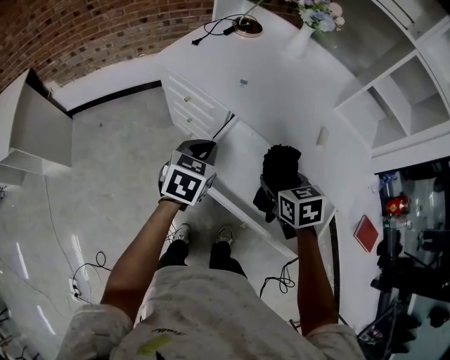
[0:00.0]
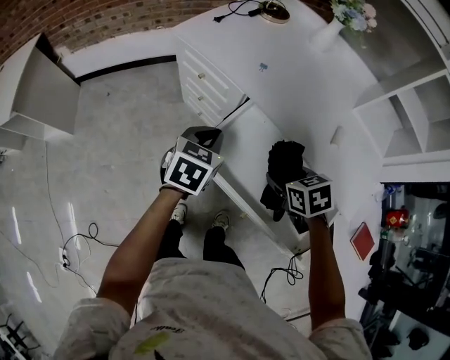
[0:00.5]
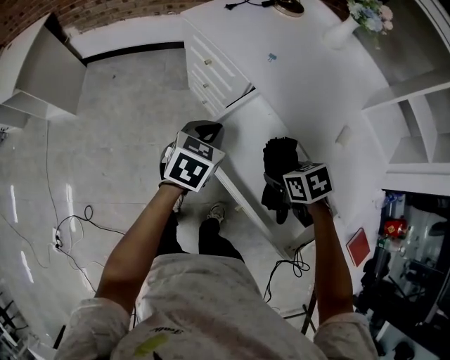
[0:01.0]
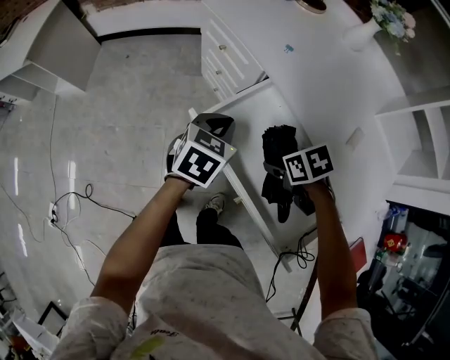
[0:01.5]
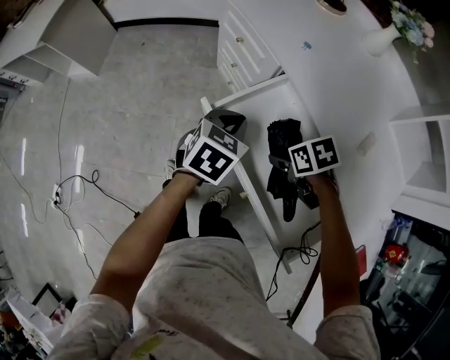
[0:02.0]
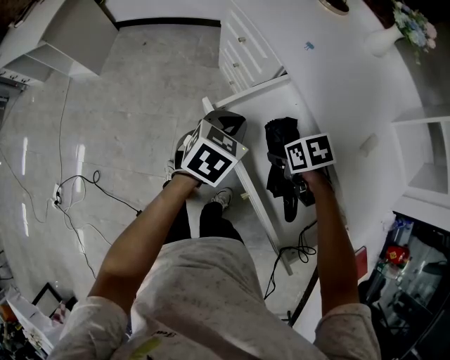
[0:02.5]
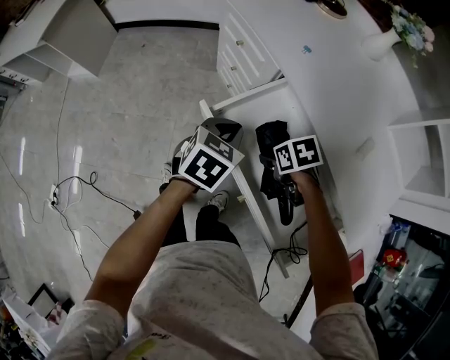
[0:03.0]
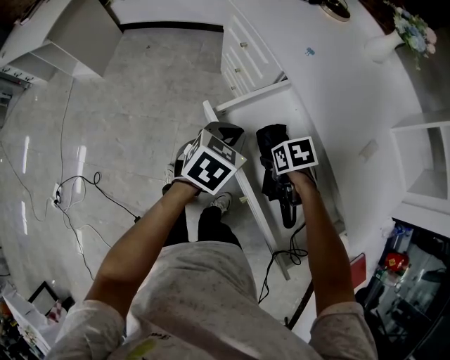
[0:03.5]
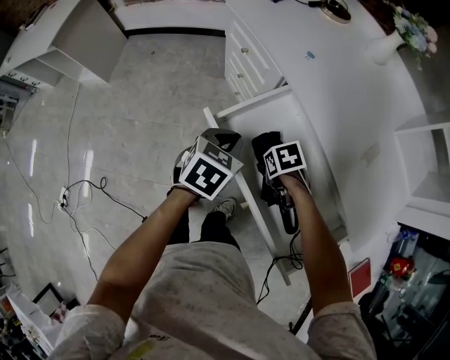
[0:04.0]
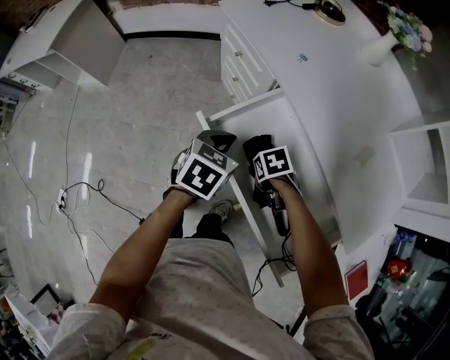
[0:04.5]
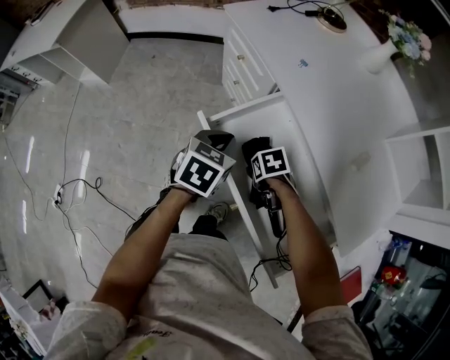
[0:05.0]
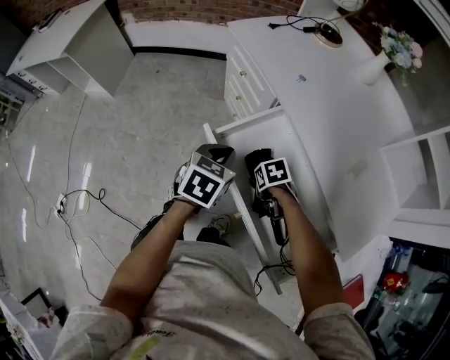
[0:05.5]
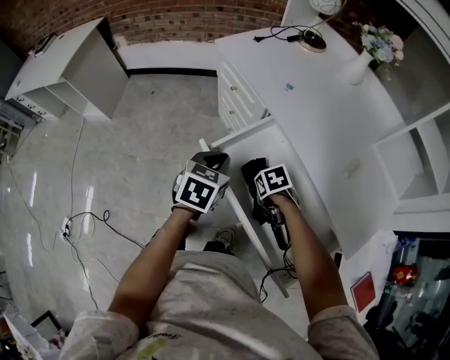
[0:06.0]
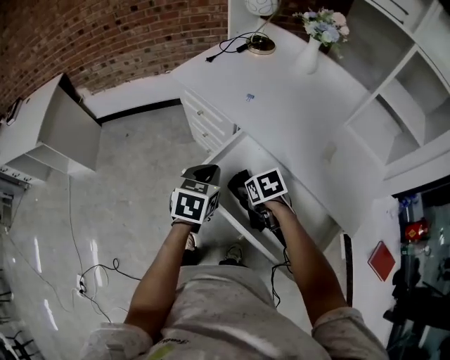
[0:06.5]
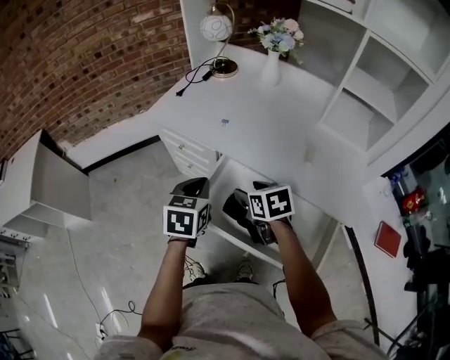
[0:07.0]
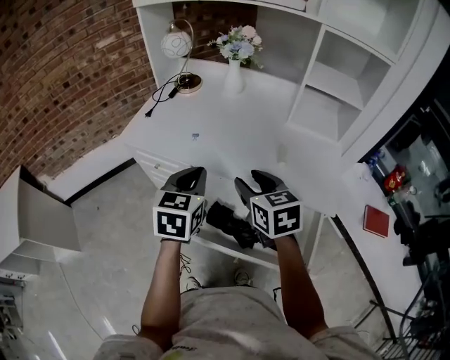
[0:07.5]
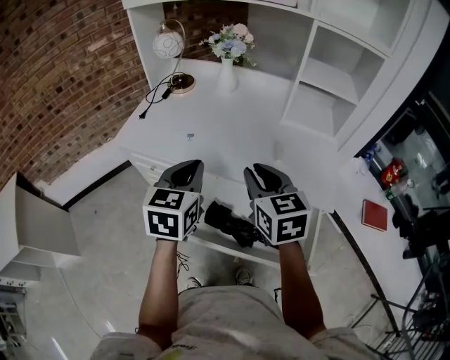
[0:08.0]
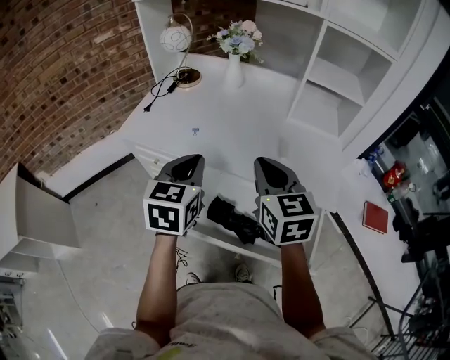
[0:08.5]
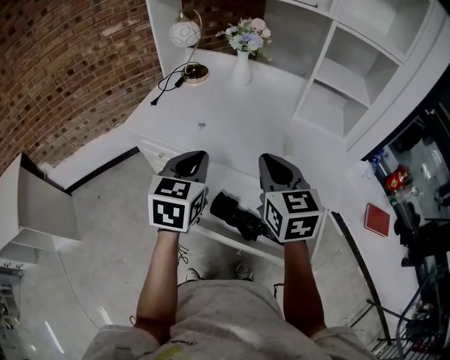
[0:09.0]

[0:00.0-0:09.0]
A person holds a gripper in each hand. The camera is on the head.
0:00.0 to 0:02.0: The left gripper is displaced downward by roughly 5 cm, while the right gripper goes approximately 15 cm downward, and rotates about 40 degrees.
0:02.0 to 0:04.5: The right gripper goes roughly 10 cm downward.
0:04.5 to 0:07.0: The right gripper heads upward, covering roughly 20 cm, and changes its angle by approximately 50 degrees, while the left gripper goes about 10 cm upward.
0:07.0 to 0:09.0: The left gripper travels upward by approximately 10 cm. Meanwhile the right gripper moves upward and to the right, roughly 20 cm, changes its angle by roughly 40 degrees, and closes.

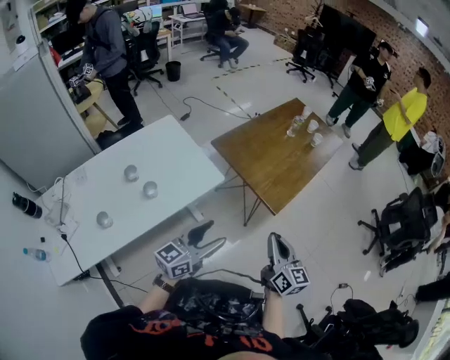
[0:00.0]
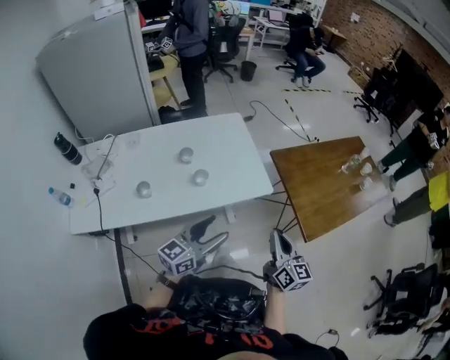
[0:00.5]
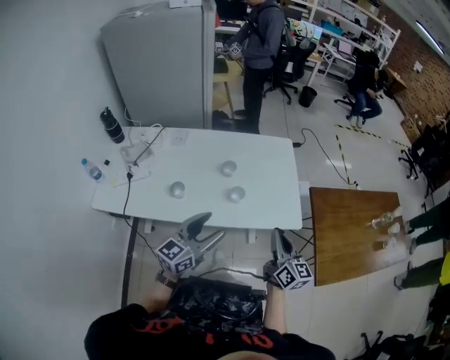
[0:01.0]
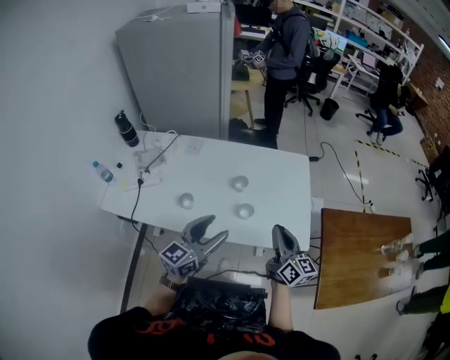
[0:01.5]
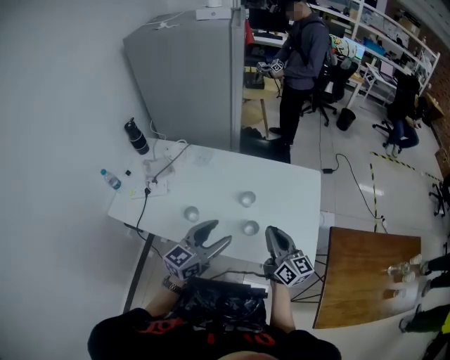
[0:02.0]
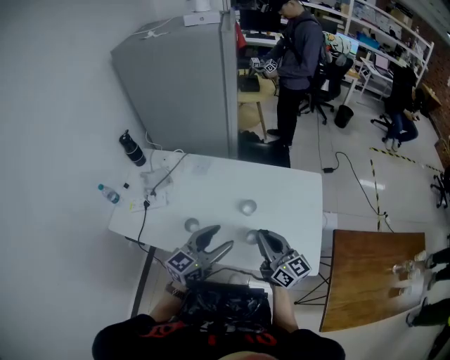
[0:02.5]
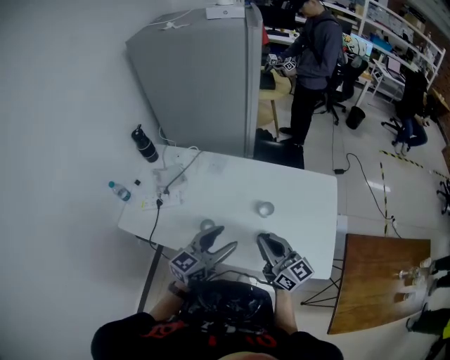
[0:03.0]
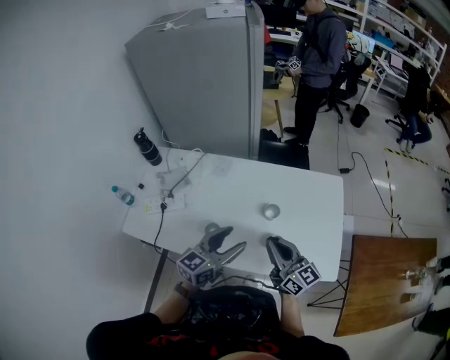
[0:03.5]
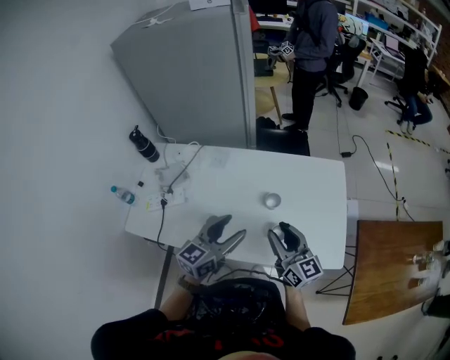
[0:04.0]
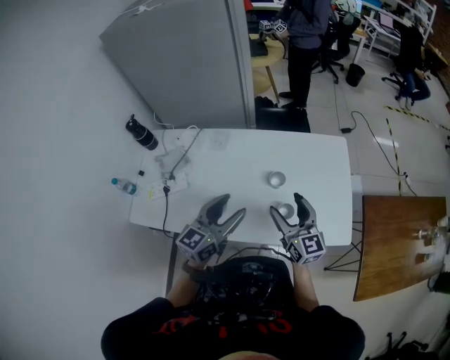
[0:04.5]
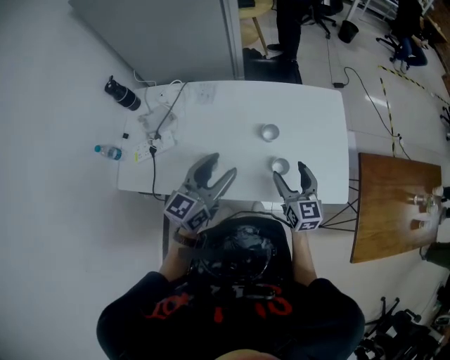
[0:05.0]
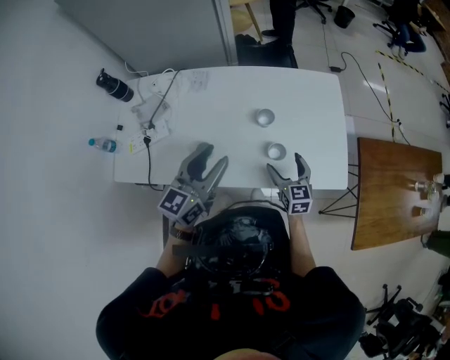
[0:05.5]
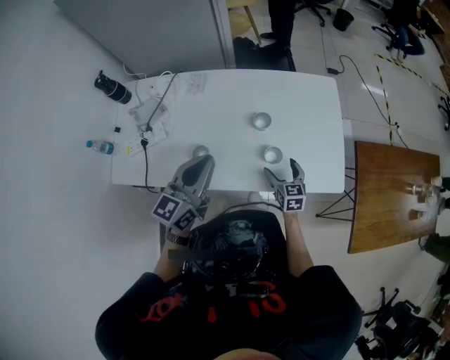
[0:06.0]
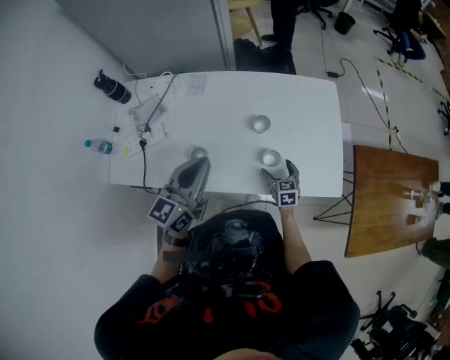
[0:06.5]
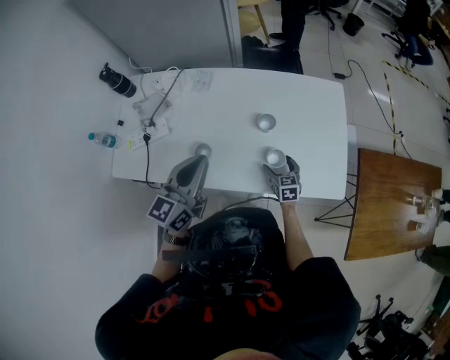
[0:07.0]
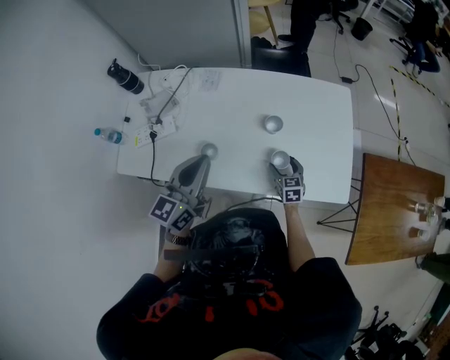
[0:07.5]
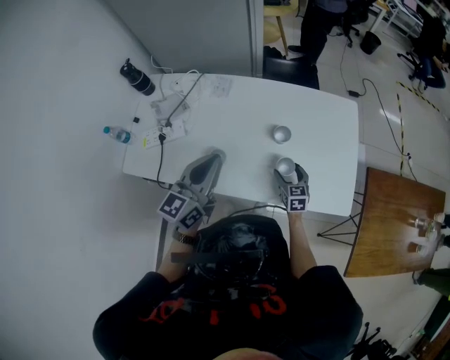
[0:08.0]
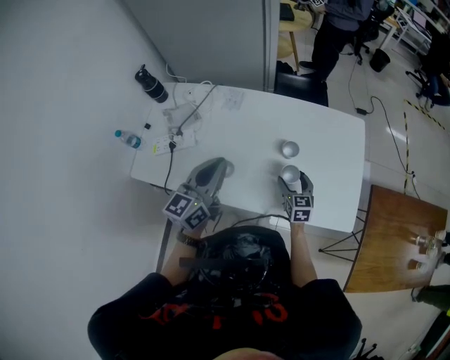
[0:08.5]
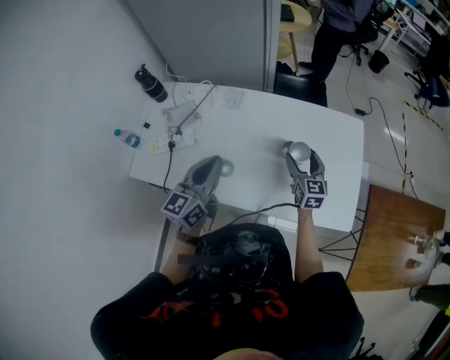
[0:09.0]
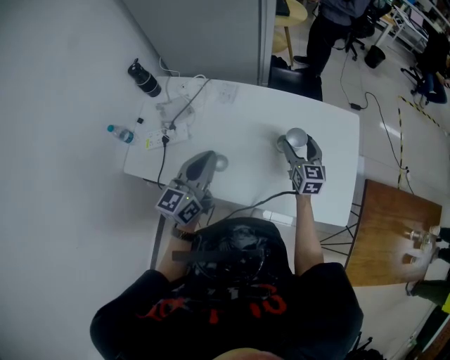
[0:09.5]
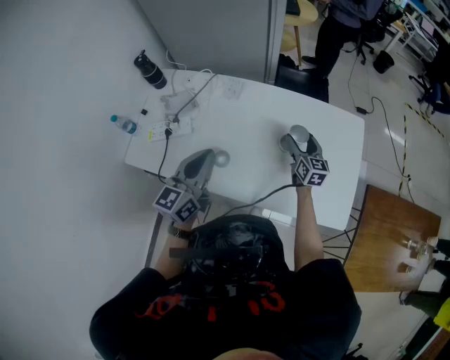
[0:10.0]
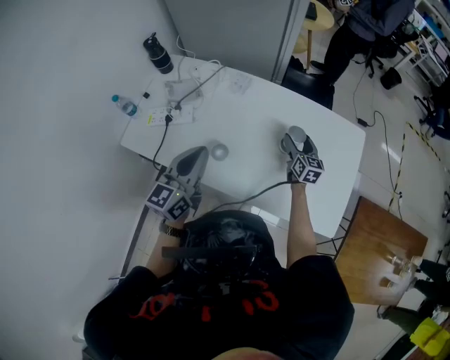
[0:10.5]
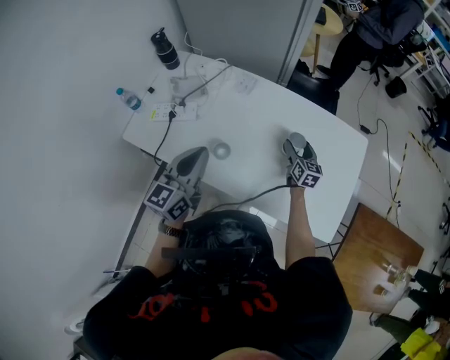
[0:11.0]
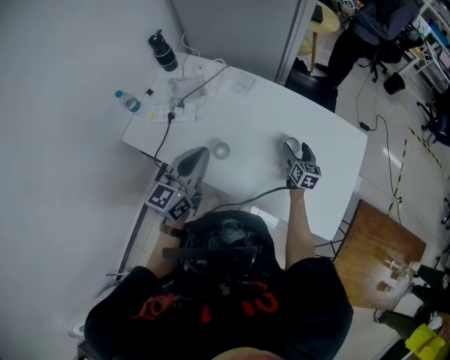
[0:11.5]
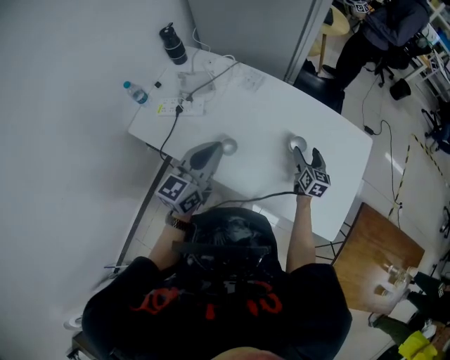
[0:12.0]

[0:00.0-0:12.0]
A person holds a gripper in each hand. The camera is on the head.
0:00.0 to 0:02.0: The right gripper ends up roughly 50 cm from where it was, and changes its angle by some 60 degrees. Meanwhile the left gripper ends up roughly 35 cm from where it was, and turns by about 60 degrees.
0:02.0 to 0:04.0: The right gripper heads to the left, covering roughly 10 cm. Meanwhile the left gripper travels forward and to the left by roughly 10 cm.
0:04.0 to 0:06.0: The right gripper shifts about 25 cm downward, angles its fingers downward, by some 30 degrees, and opens. Meanwhile the left gripper closes its fingers.
0:06.0 to 0:08.0: The right gripper moves some 5 cm.
0:08.0 to 0:10.0: The right gripper goes about 20 cm forward and upward, and turns by about 20 degrees.
0:10.0 to 0:12.0: The right gripper goes some 5 cm downward.

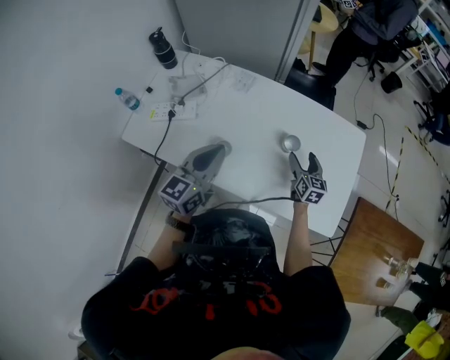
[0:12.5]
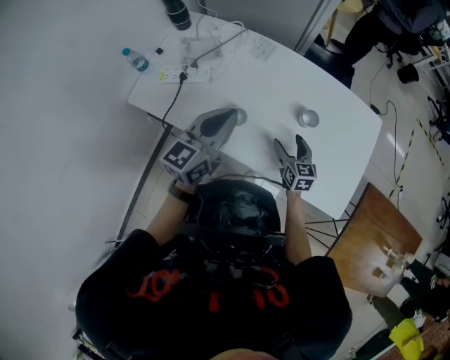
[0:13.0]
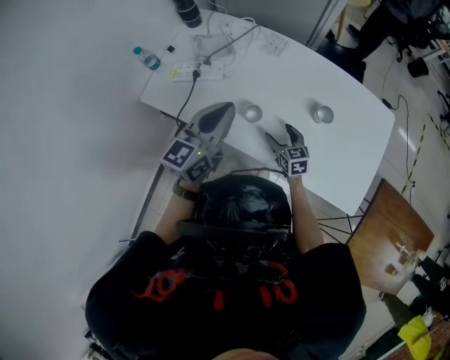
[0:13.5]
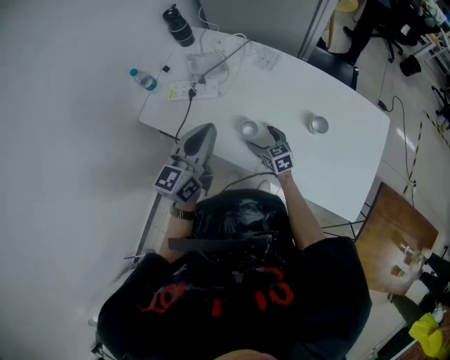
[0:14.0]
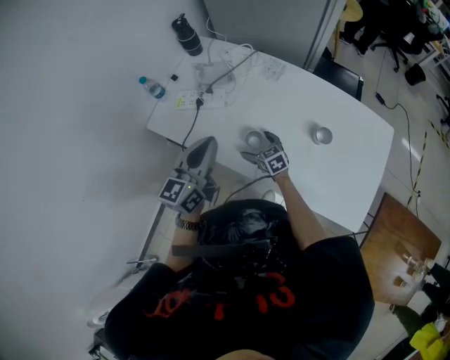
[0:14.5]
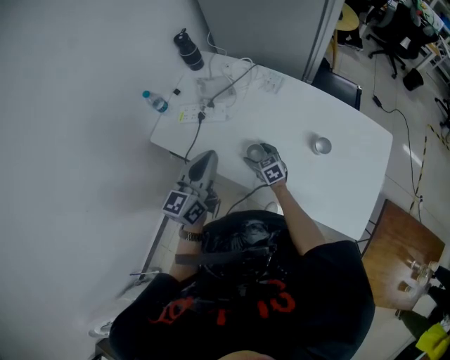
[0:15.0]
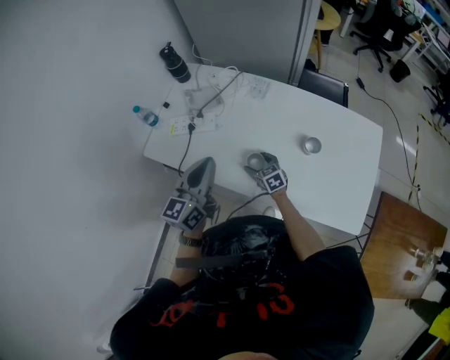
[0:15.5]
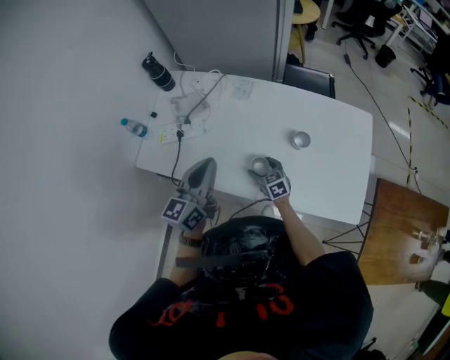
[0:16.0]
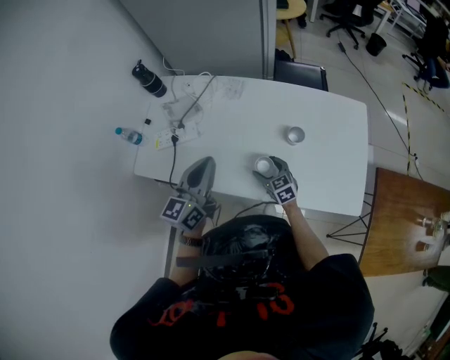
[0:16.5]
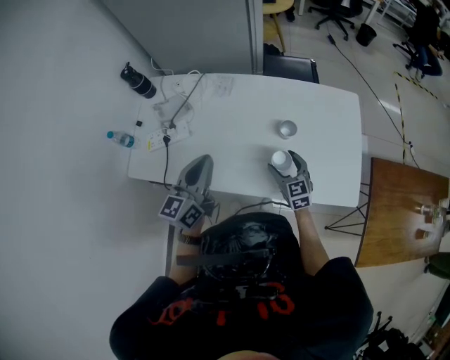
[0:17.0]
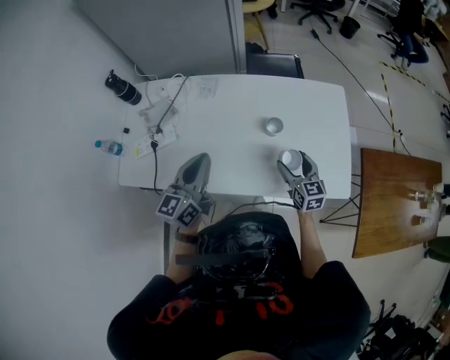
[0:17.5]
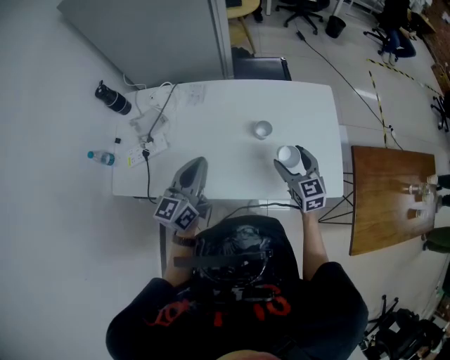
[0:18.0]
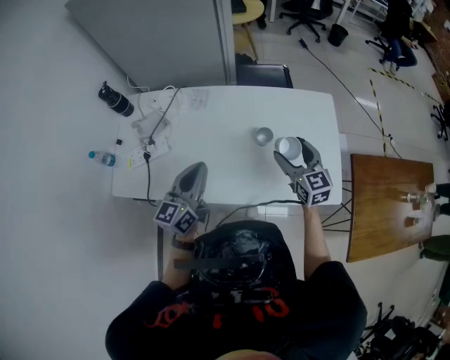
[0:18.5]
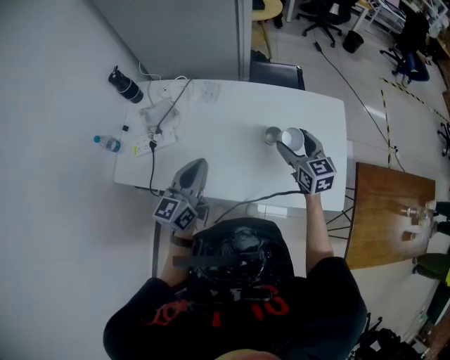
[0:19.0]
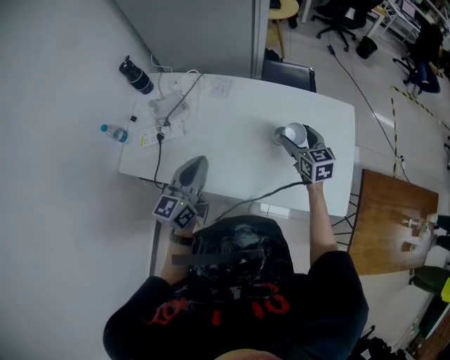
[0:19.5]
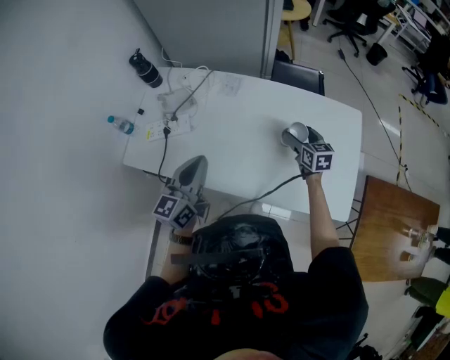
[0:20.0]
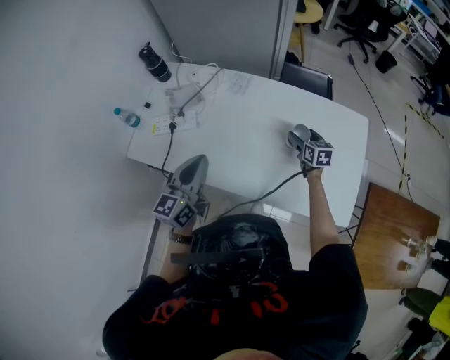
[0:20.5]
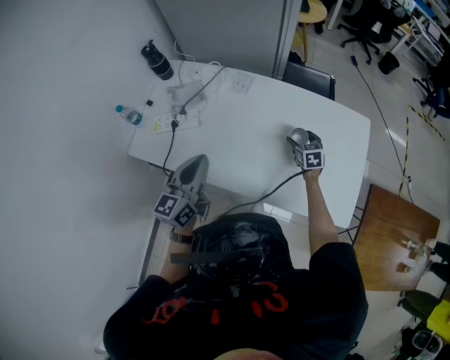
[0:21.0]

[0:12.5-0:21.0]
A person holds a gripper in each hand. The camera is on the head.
0:12.5 to 0:14.5: The right gripper ends up some 35 cm from where it was, and swivels roughly 50 degrees, while the left gripper moves about 10 cm.
0:14.5 to 0:16.5: The right gripper heads to the right and backward, covering approximately 15 cm, and turns by approximately 20 degrees. Meanwhile the left gripper shifts roughly 5 cm to the right.
0:16.5 to 0:19.0: The right gripper goes about 25 cm upward and to the right.
0:19.0 to 0:21.0: The left gripper moves to the left, approximately 5 cm; the right gripper heads downward and forward, covering approximately 20 cm, and swivels about 20 degrees.
